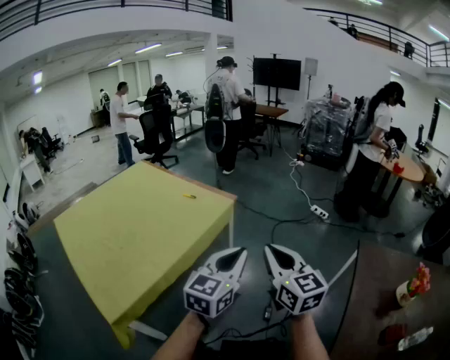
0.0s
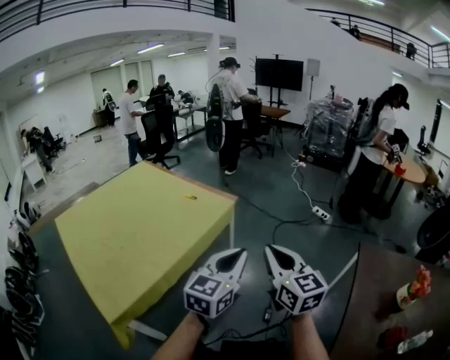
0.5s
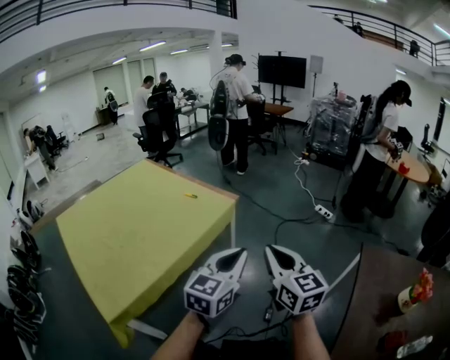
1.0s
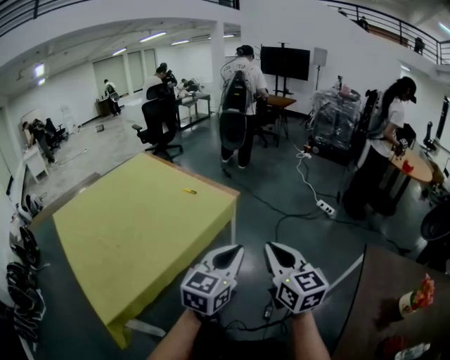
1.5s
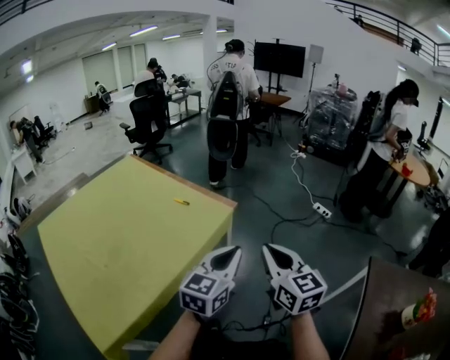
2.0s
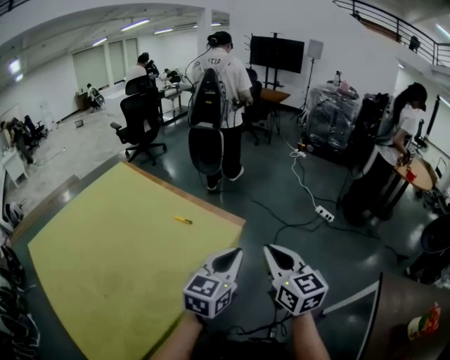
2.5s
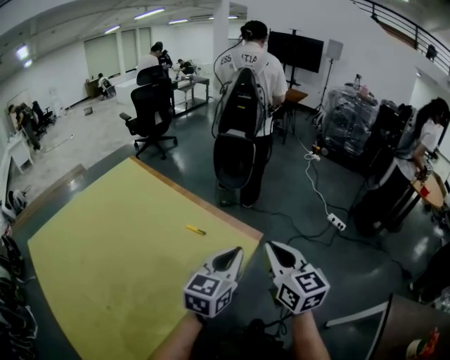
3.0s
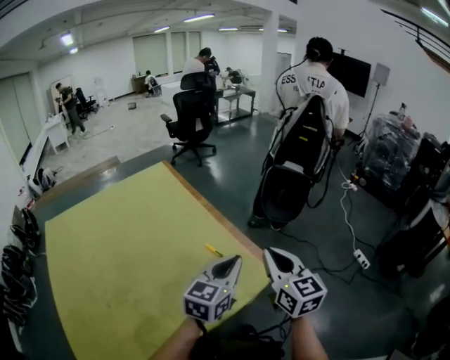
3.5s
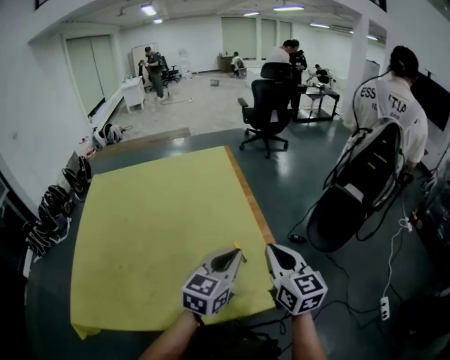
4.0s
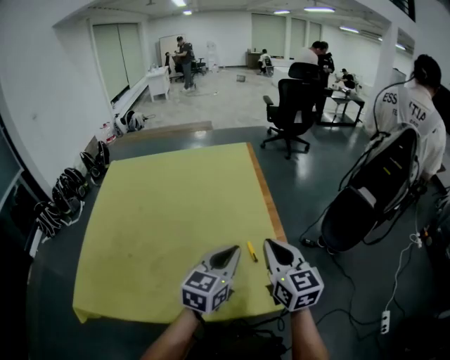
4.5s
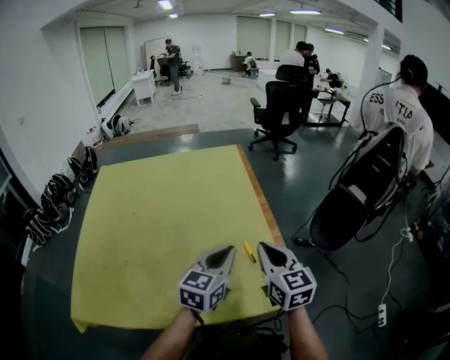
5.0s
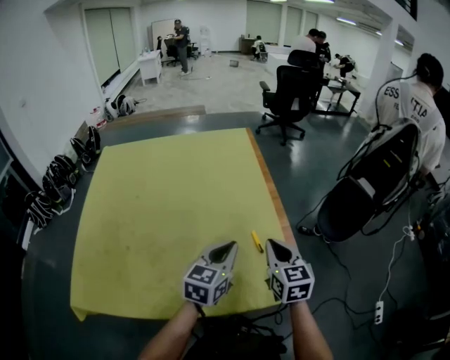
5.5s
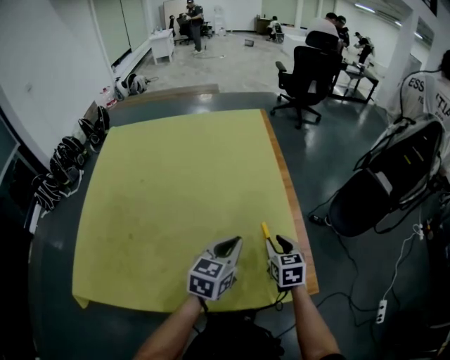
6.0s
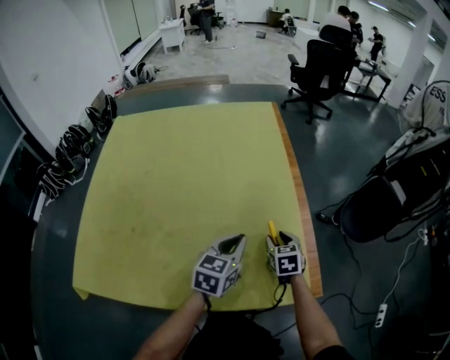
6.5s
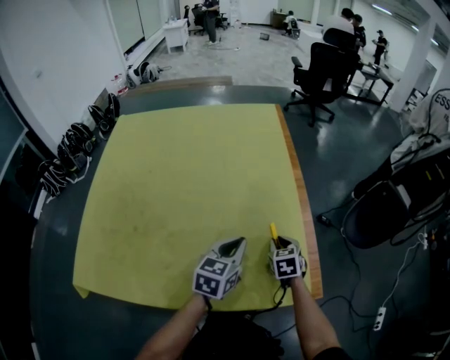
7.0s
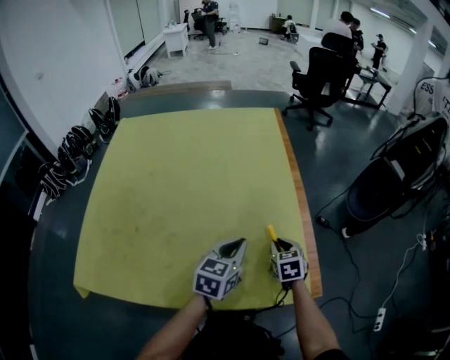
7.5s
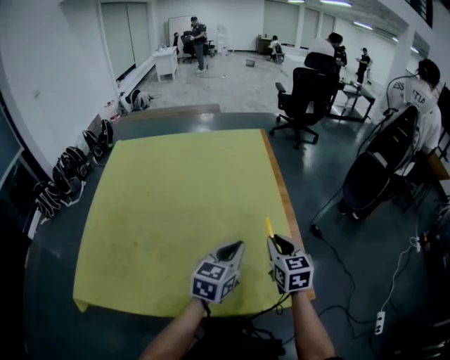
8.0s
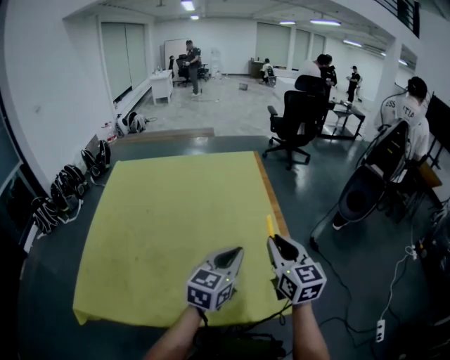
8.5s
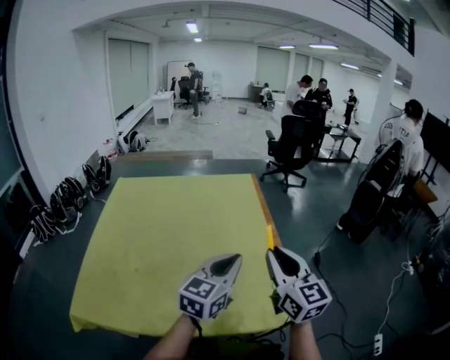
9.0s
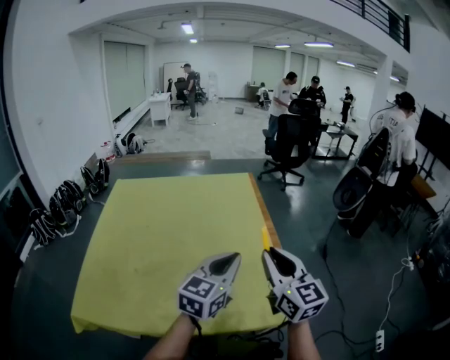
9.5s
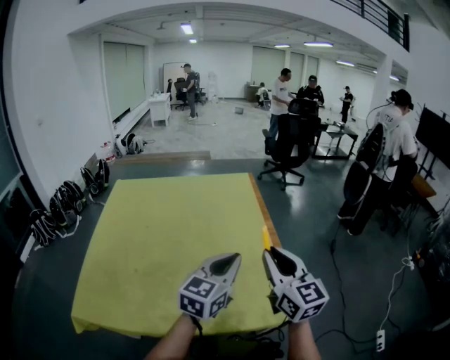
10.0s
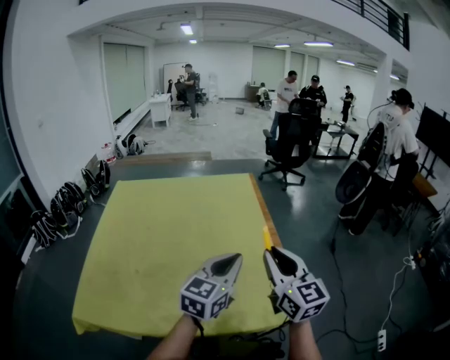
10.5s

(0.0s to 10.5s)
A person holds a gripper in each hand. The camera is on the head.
0.0s - 2.0s: The two grippers go about 15 cm forward.
2.0s - 4.0s: The left gripper moves some 35 cm, and turns by some 40 degrees. Meanwhile the right gripper moves some 40 cm, and swivels some 40 degrees.
4.0s - 6.5s: The right gripper shifts about 25 cm downward, points its fingers roughly 40 degrees further downward, and opens up. The left gripper heads downward and to the left, covering roughly 15 cm, and swivels approximately 20 degrees.
6.5s - 8.5s: The left gripper shifts some 10 cm upward. The right gripper travels upward by roughly 25 cm, tips its fingers upward by some 40 degrees, and closes up.
8.5s - 10.5s: Both grippers travel together upward, some 5 cm.

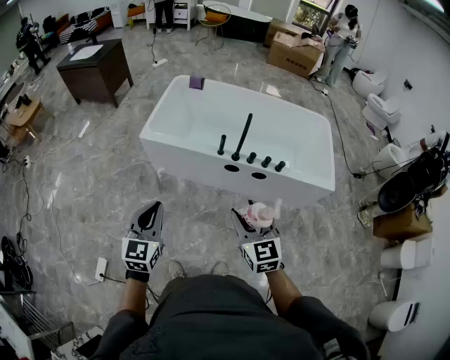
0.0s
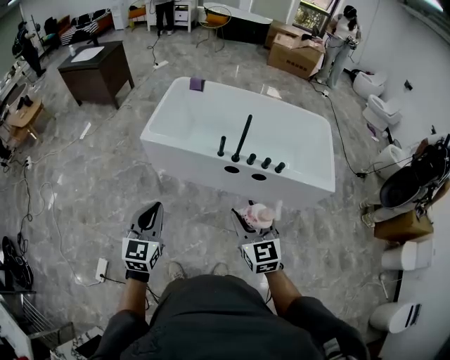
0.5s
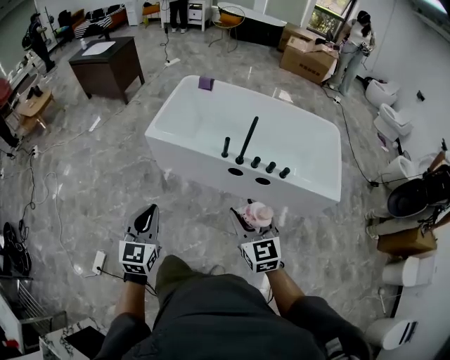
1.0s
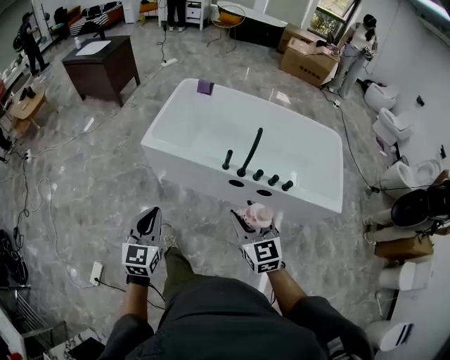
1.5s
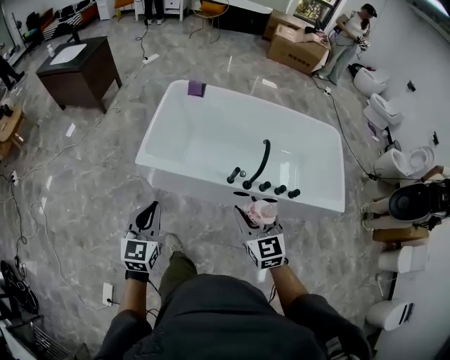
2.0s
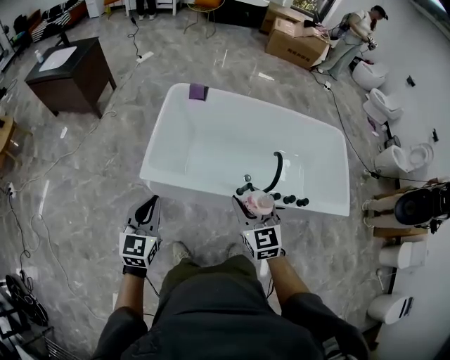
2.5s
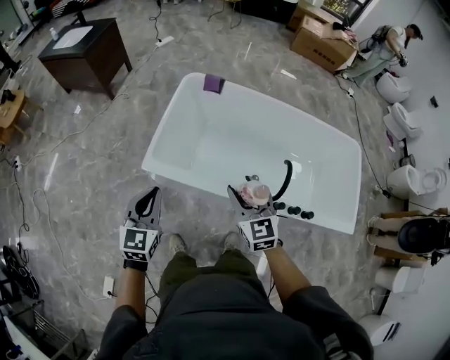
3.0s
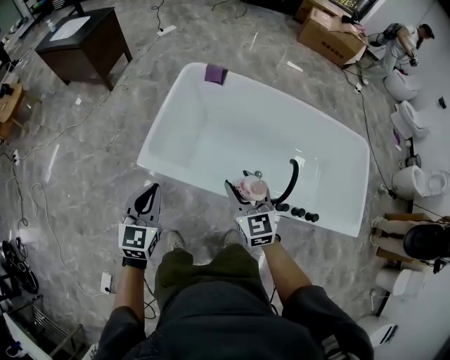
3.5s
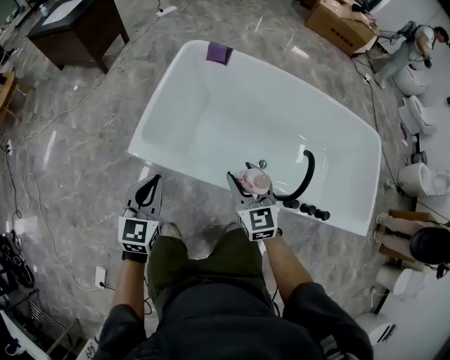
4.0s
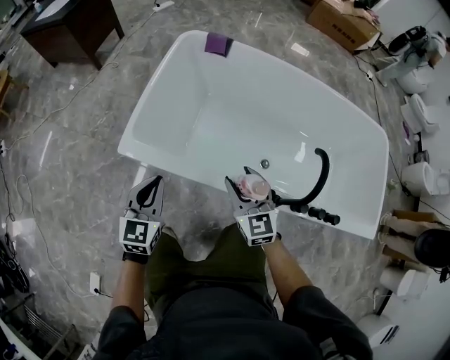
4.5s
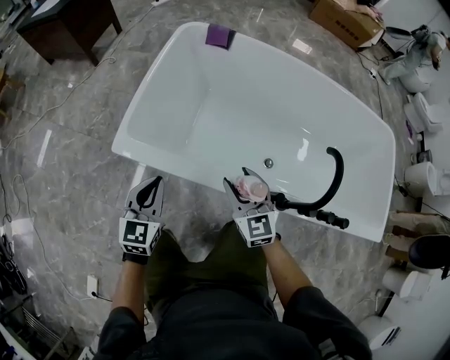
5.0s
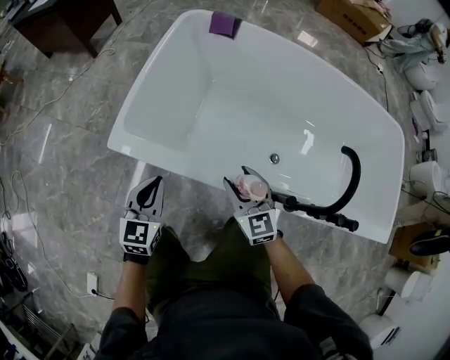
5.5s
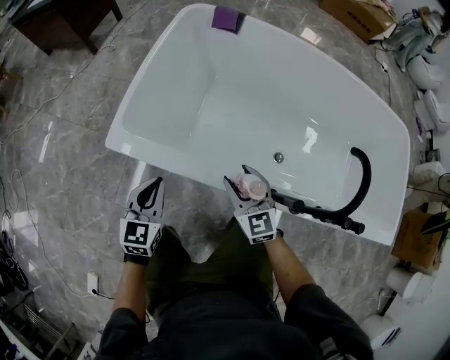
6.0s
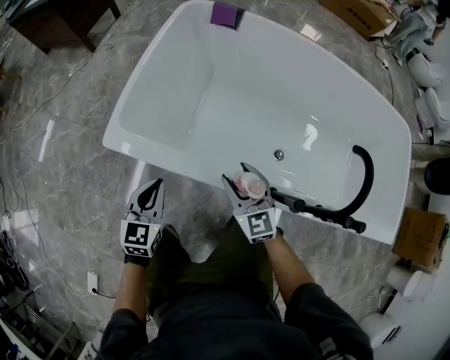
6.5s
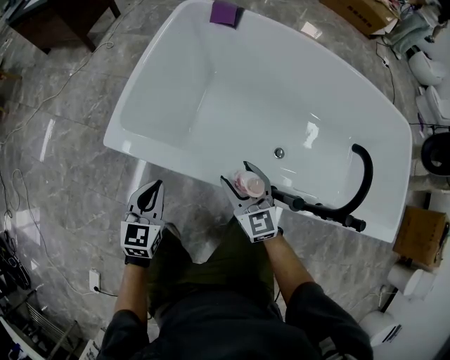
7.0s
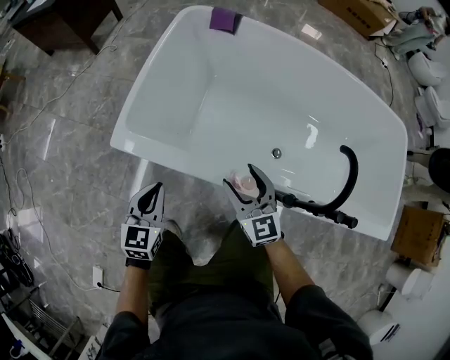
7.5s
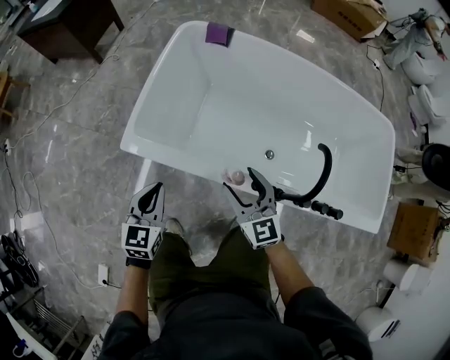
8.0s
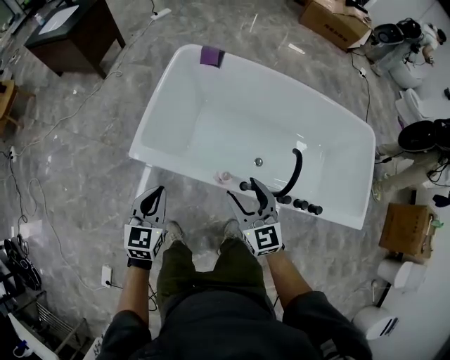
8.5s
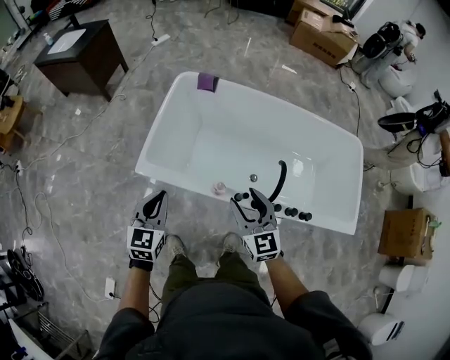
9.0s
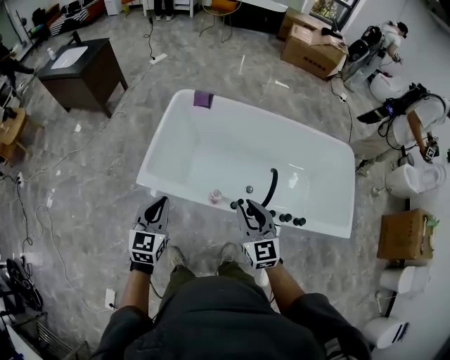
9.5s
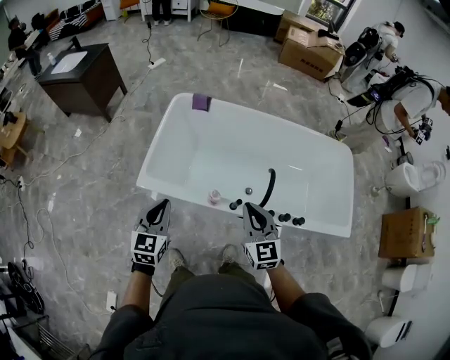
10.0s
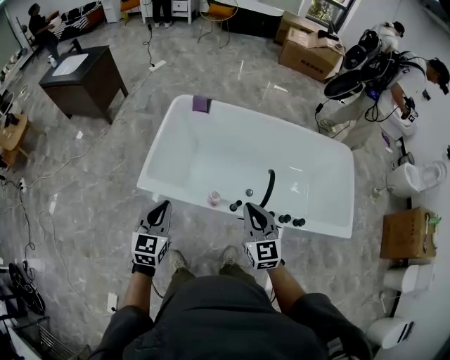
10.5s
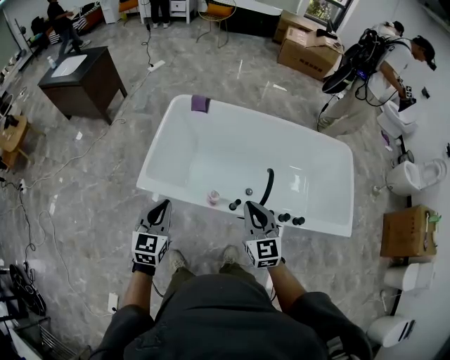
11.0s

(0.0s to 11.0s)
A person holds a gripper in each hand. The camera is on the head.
0.0s - 2.0s: Both grippers travel together forward, some 25 cm.
2.0s - 3.5s: The grippers both shift forward by about 20 cm.
3.5s - 5.5s: Both grippers move downward, approximately 30 cm.
5.5s - 7.5s: The grippers make only small movements.
7.5s - 9.0s: The grippers both shift upward by some 30 cm.
9.0s - 11.0s: The right gripper moves roughly 5 cm, and closes its fingers, while the left gripper ends up some 5 cm from where it was.

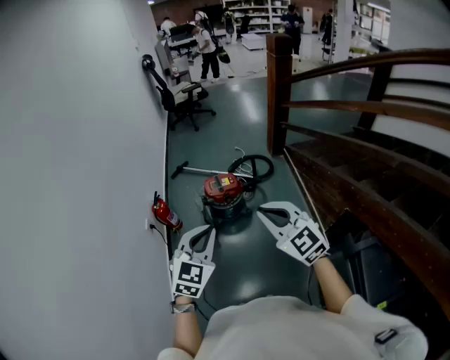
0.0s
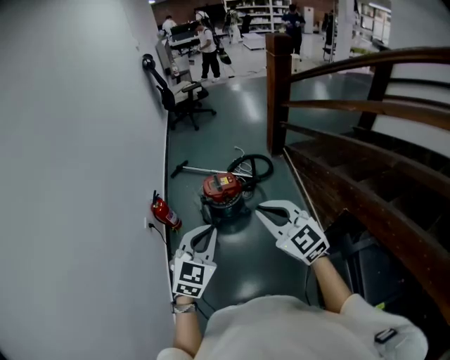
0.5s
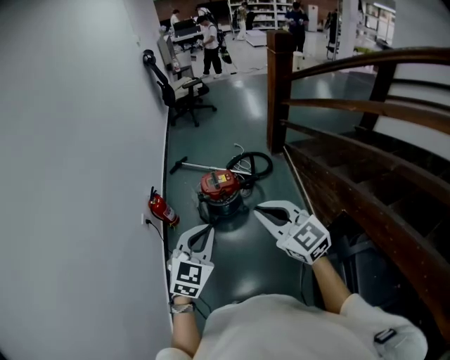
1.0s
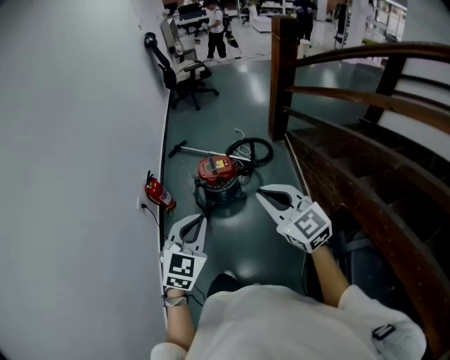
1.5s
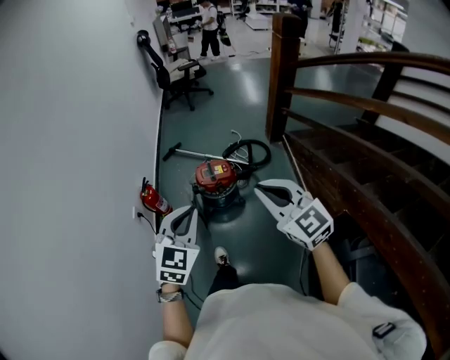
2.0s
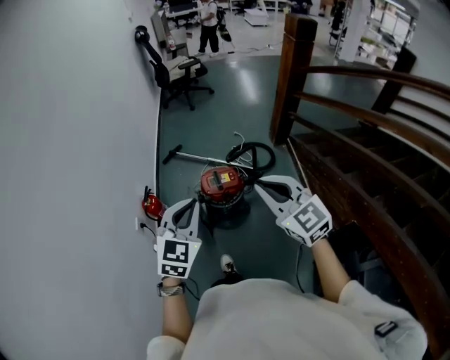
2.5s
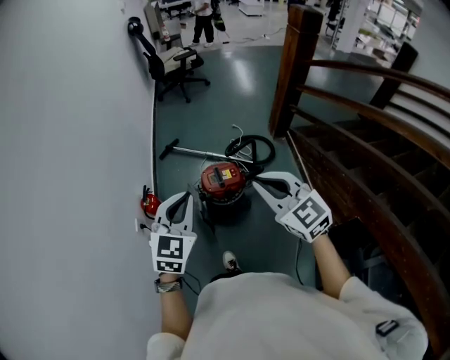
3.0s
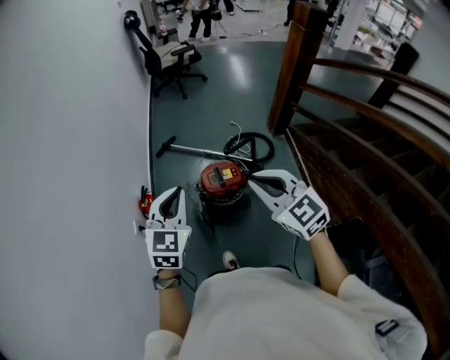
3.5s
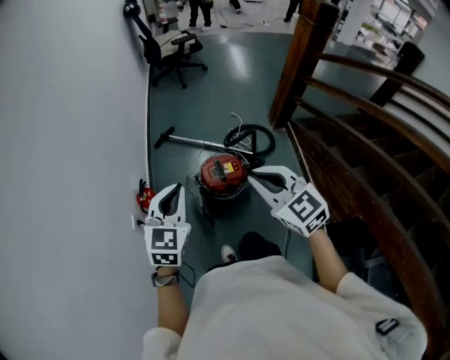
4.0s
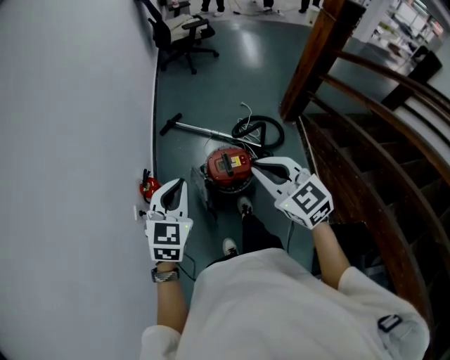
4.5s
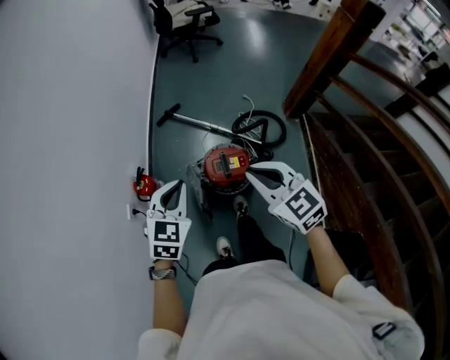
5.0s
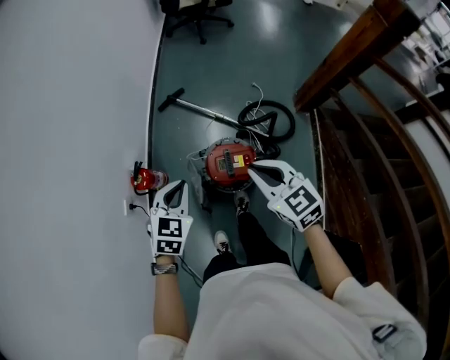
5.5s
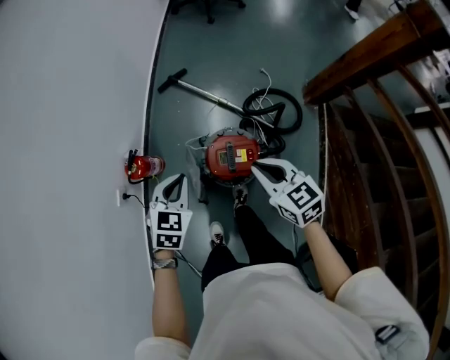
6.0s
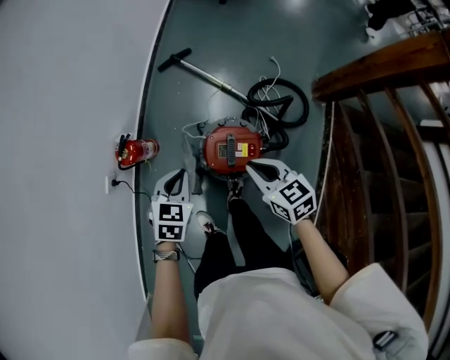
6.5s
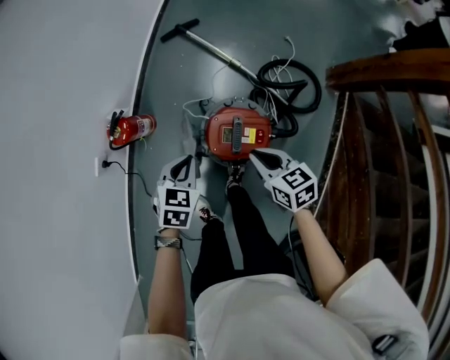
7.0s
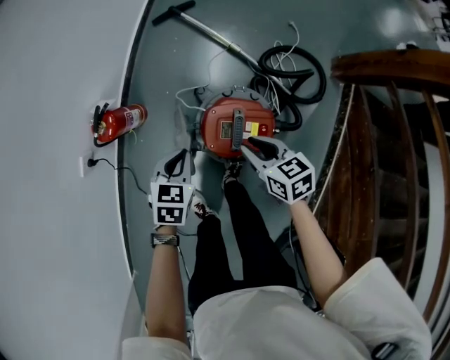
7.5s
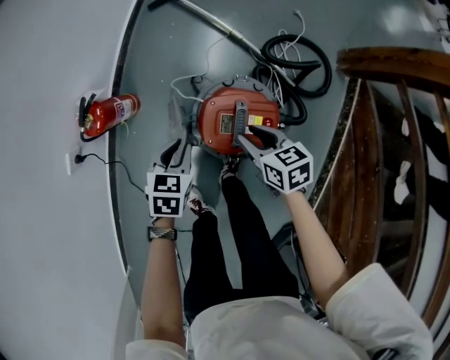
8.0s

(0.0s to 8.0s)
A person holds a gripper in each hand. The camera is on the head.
0.0s - 2.0s: The two grippers go approximately 10 cm forward.
2.0s - 4.0s: Both grippers travel together forward and to the left, approximately 30 cm.
4.0s - 6.0s: The left gripper moves downward and forward, roughly 30 cm, and rotates approximately 30 degrees. Meanwhile the right gripper goes about 30 cm forward and downward, and turns by some 30 degrees.
6.0s - 8.0s: The two grippers go approximately 30 cm downward. The left gripper swivels some 20 degrees, while the right gripper turns by approximately 20 degrees, and opens its fingers.
